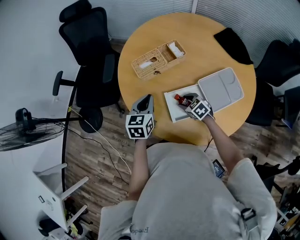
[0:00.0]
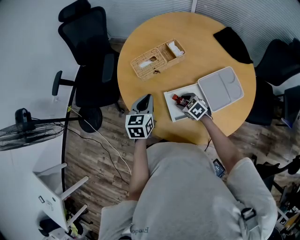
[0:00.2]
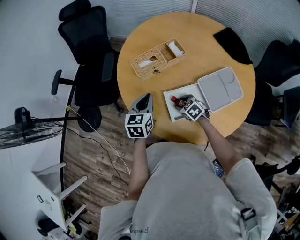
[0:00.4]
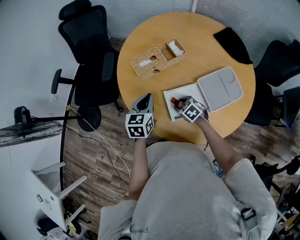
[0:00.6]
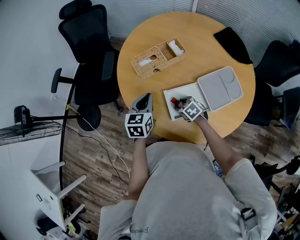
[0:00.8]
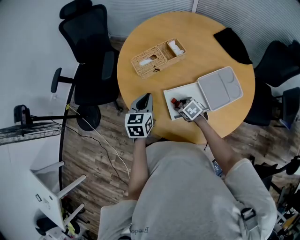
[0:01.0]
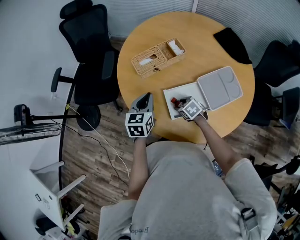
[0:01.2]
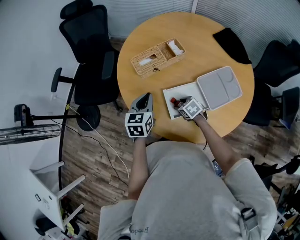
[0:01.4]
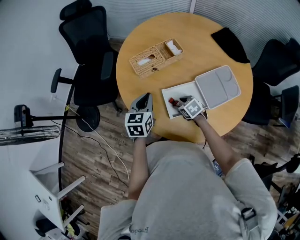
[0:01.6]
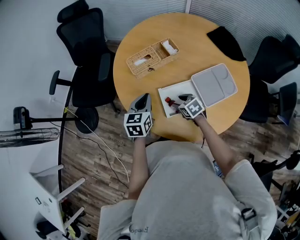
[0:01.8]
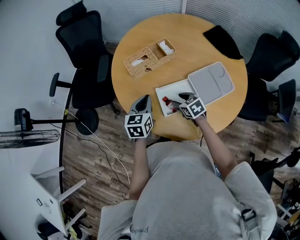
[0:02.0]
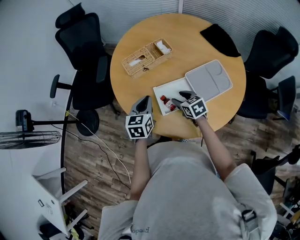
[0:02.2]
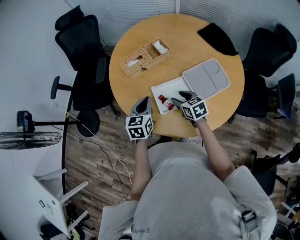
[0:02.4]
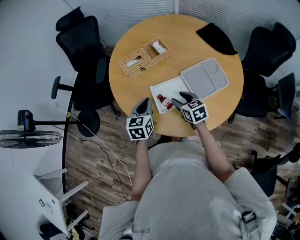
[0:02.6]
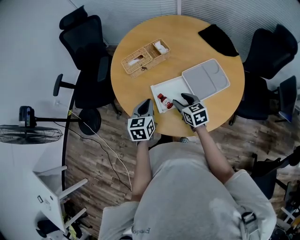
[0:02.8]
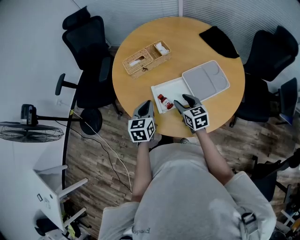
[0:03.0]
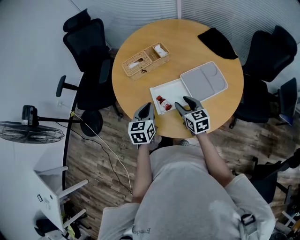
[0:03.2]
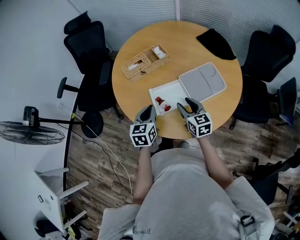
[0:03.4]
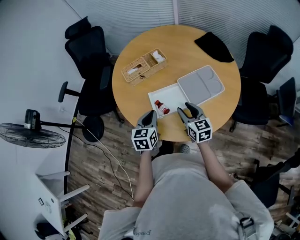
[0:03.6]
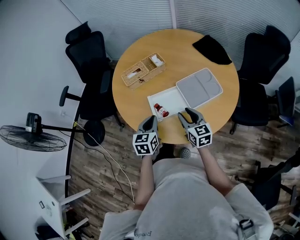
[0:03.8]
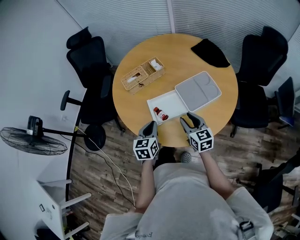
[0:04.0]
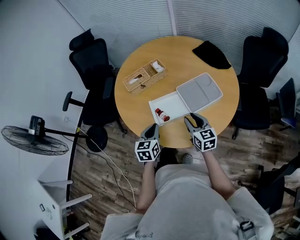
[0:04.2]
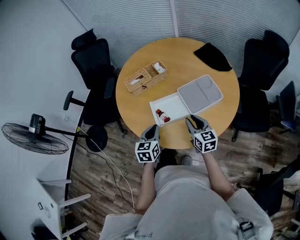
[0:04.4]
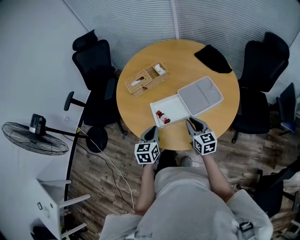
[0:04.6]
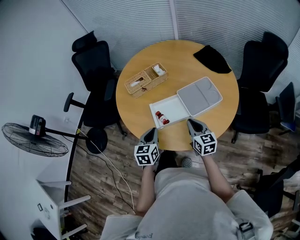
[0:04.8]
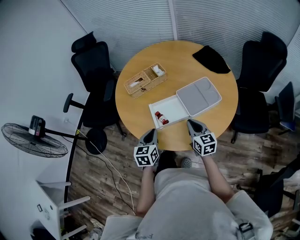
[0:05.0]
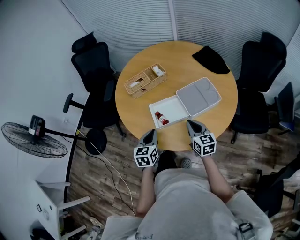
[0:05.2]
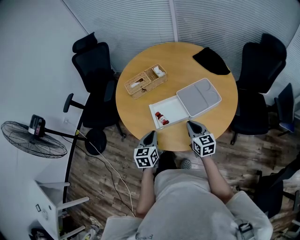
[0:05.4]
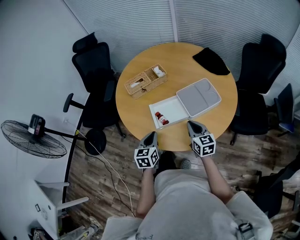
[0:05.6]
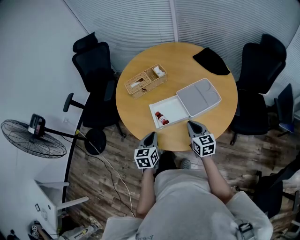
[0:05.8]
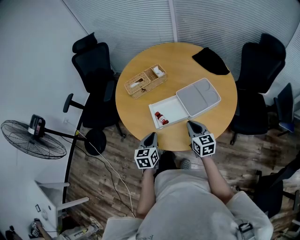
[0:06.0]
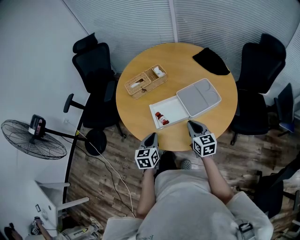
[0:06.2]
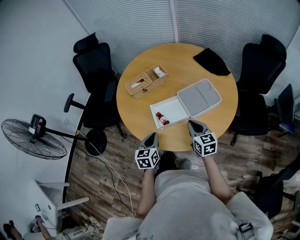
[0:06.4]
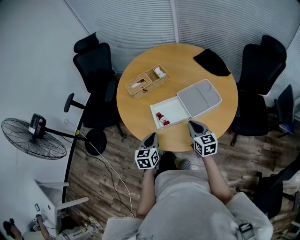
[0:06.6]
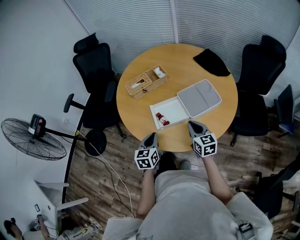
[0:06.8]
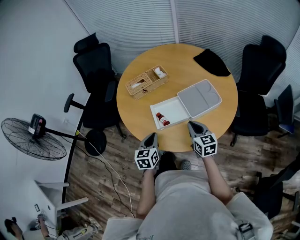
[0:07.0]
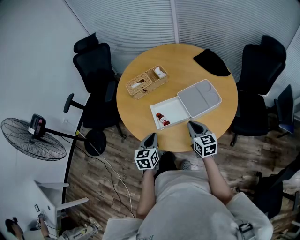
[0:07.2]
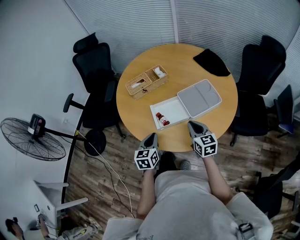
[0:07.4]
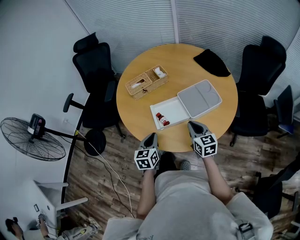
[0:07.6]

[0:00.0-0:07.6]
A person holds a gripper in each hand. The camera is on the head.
0:00.0 to 0:01.6: The grippers stay close to where they were, moving slightly.
0:01.6 to 0:03.0: The left gripper moves backward, approximately 10 cm; the right gripper travels upward and to the right by about 15 cm, and changes its angle by some 30 degrees.
0:03.0 to 0:04.6: The left gripper shifts roughly 5 cm backward, while the right gripper travels to the right and backward by about 10 cm, and closes.
0:04.6 to 0:06.0: There are only small adjustments of the grippers.
0:06.0 to 0:07.6: Both grippers stay put.

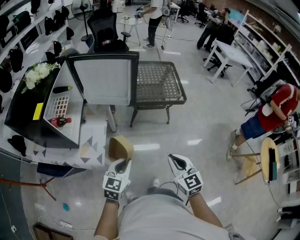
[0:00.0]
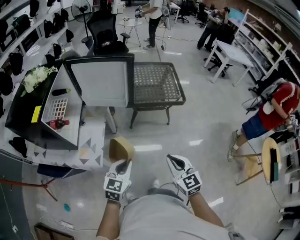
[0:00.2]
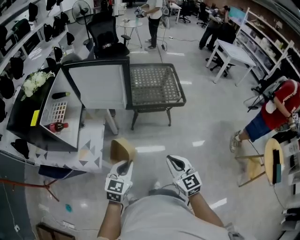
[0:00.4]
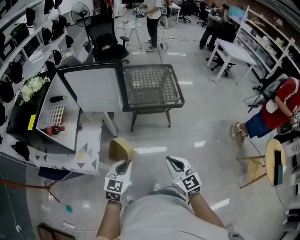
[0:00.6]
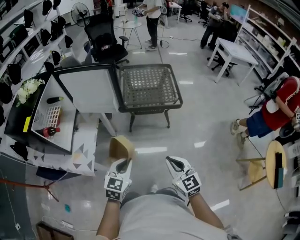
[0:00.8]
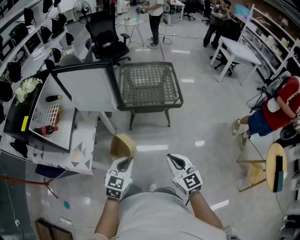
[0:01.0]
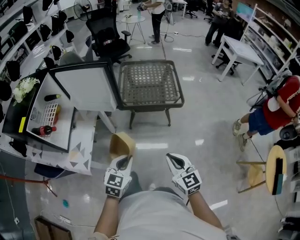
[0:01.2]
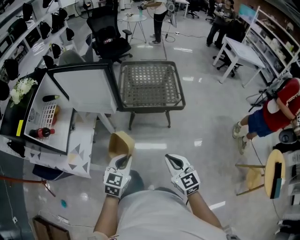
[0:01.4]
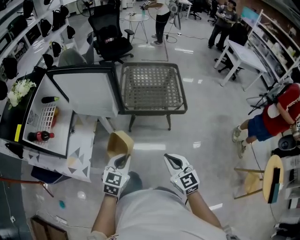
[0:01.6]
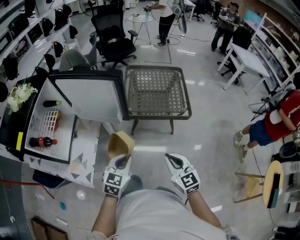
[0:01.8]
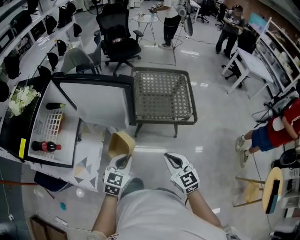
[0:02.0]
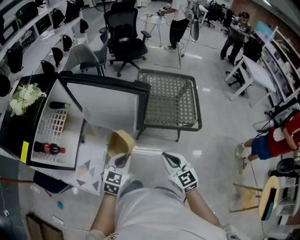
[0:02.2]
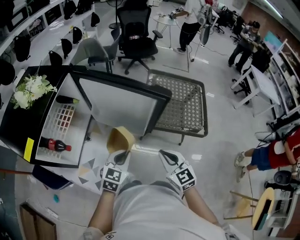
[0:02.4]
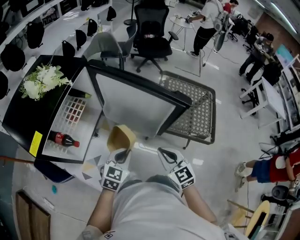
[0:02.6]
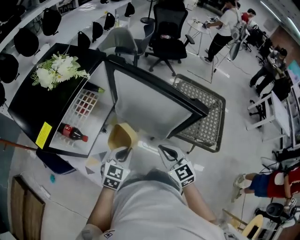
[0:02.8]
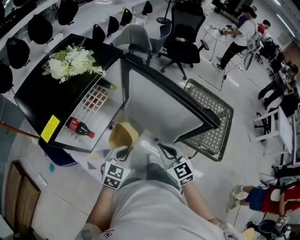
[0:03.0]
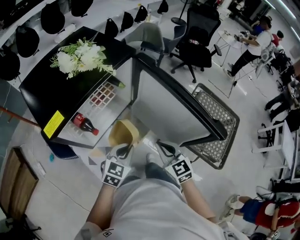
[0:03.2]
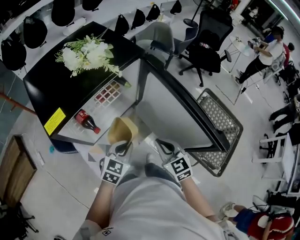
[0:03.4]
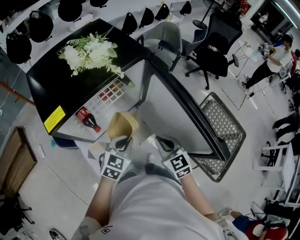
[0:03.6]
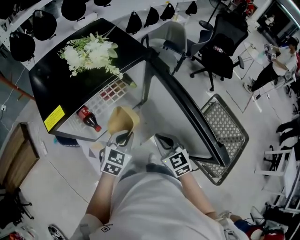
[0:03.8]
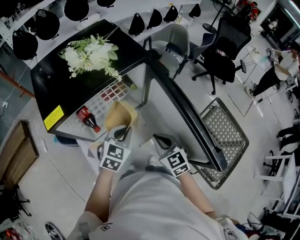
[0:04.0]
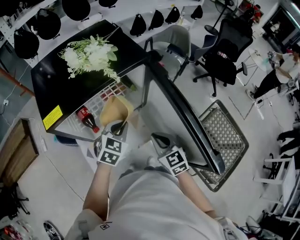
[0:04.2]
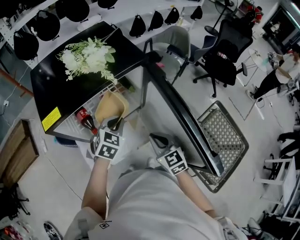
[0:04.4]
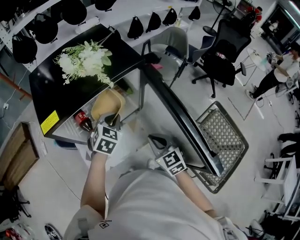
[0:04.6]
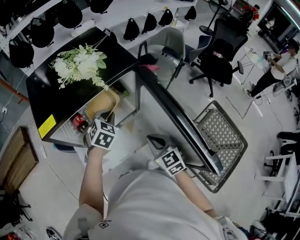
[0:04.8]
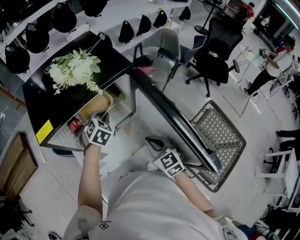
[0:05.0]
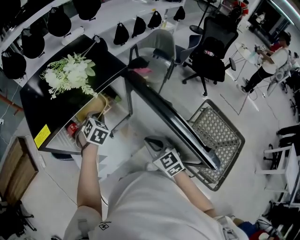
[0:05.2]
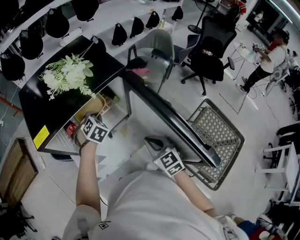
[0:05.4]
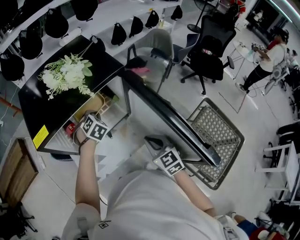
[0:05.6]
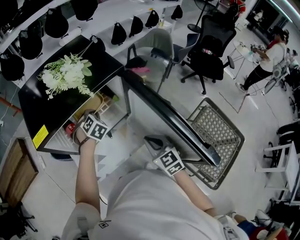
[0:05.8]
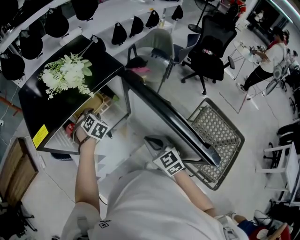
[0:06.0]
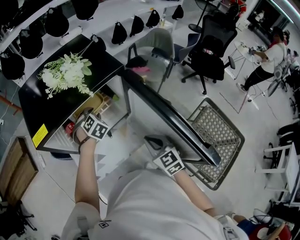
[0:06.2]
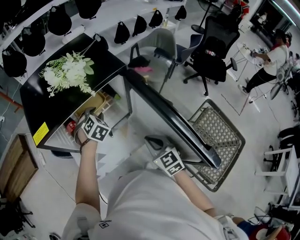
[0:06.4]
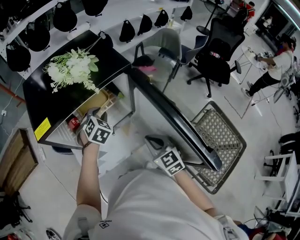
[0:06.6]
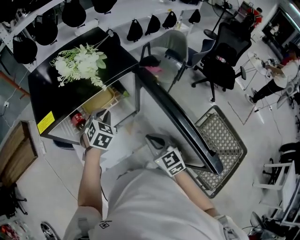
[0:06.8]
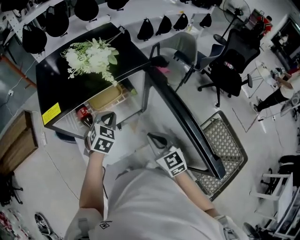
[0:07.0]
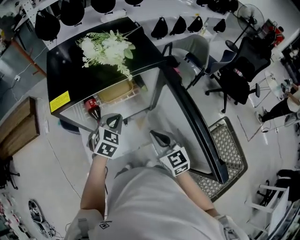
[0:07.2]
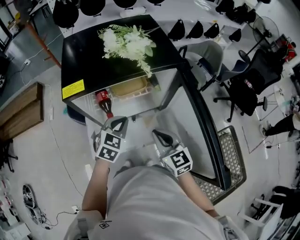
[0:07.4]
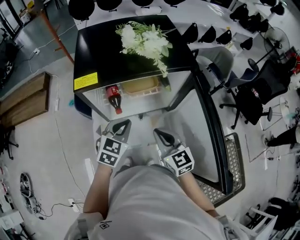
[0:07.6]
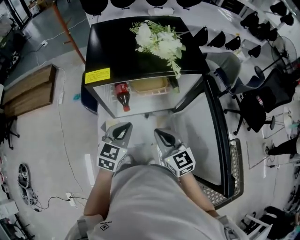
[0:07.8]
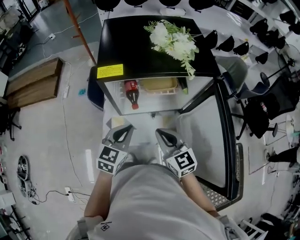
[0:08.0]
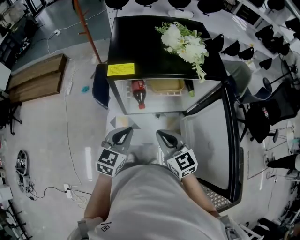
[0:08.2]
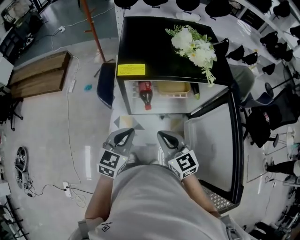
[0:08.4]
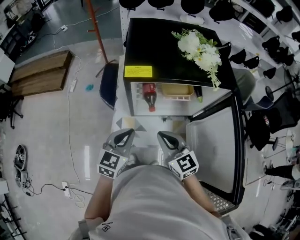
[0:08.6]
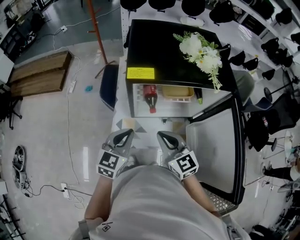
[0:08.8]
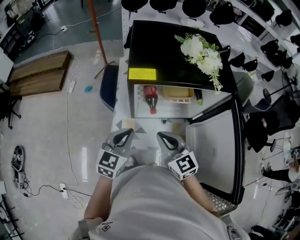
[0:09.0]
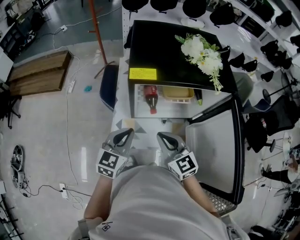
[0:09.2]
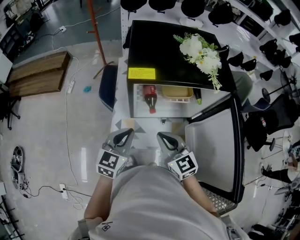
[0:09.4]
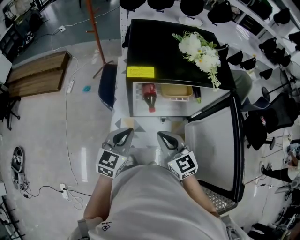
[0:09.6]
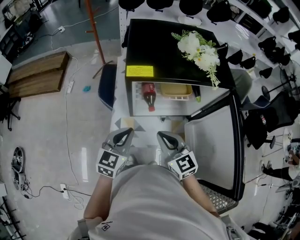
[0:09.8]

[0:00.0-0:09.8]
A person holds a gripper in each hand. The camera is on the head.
0:00.0 to 0:01.4: The grippers both shift to the right and forward by some 15 cm.
0:01.4 to 0:02.8: The right gripper heads forward and to the left, covering about 40 cm, and turns by some 30 degrees. The left gripper moves to the left and forward, approximately 30 cm.
0:02.8 to 0:04.2: The left gripper shifts by roughly 15 cm, and rotates roughly 30 degrees, while the right gripper shifts by about 15 cm, and rotates approximately 30 degrees.
0:04.2 to 0:05.6: The left gripper heads forward, covering approximately 15 cm, and rotates some 30 degrees.
0:05.6 to 0:07.0: The left gripper travels backward and upward by roughly 10 cm, changes its angle by roughly 20 degrees, and opens and closes again.
0:07.0 to 0:08.4: The left gripper moves to the left and backward, about 20 cm, and turns by about 40 degrees, while the right gripper is displaced to the left by some 15 cm, and changes its angle by roughly 30 degrees.
0:08.4 to 0:09.8: The grippers move only a little.

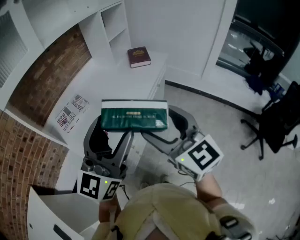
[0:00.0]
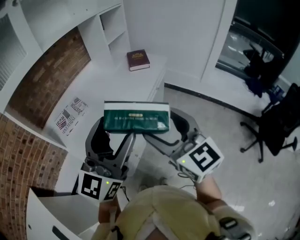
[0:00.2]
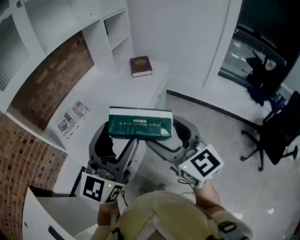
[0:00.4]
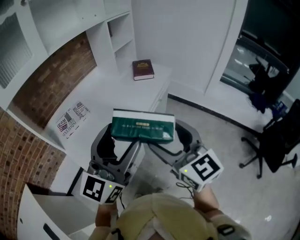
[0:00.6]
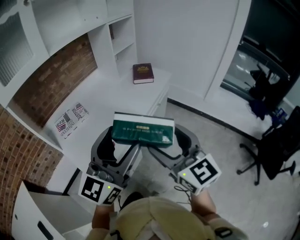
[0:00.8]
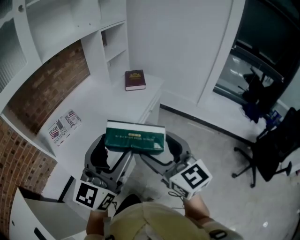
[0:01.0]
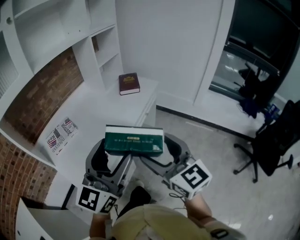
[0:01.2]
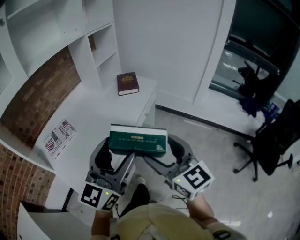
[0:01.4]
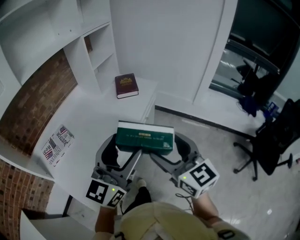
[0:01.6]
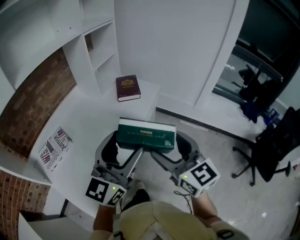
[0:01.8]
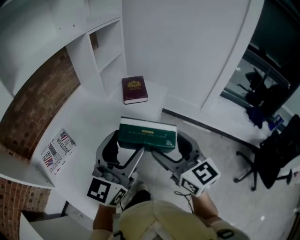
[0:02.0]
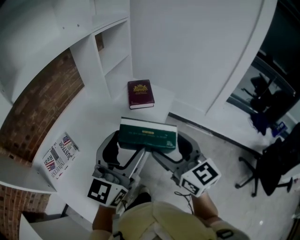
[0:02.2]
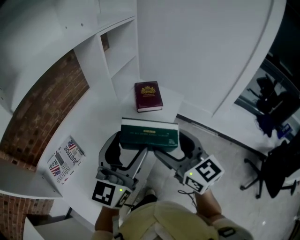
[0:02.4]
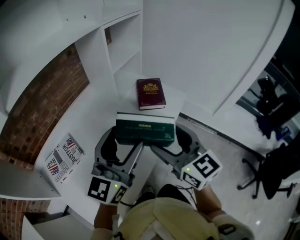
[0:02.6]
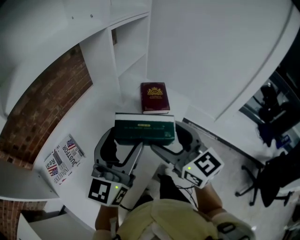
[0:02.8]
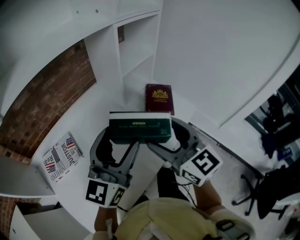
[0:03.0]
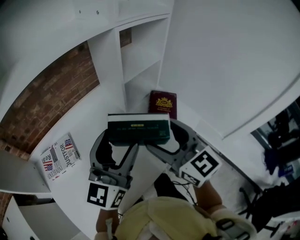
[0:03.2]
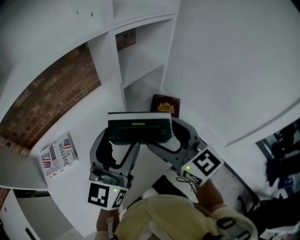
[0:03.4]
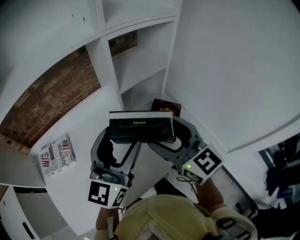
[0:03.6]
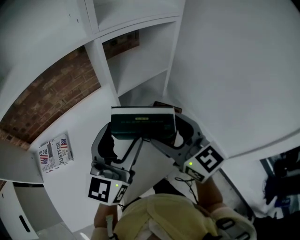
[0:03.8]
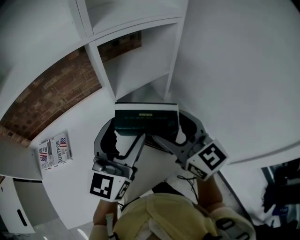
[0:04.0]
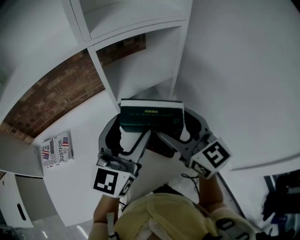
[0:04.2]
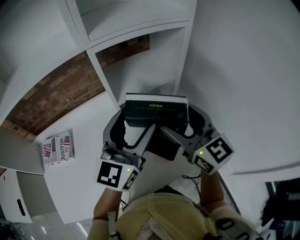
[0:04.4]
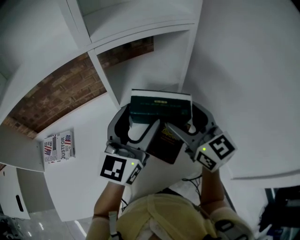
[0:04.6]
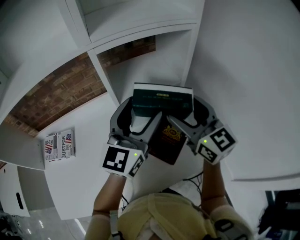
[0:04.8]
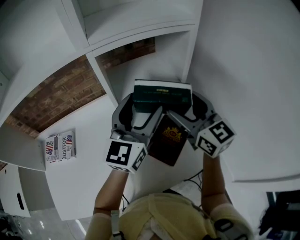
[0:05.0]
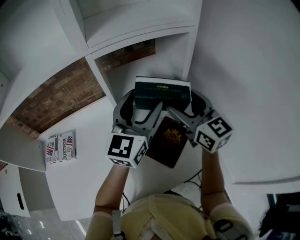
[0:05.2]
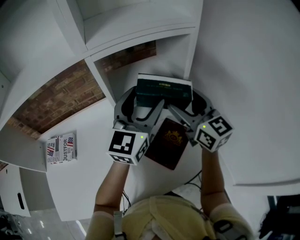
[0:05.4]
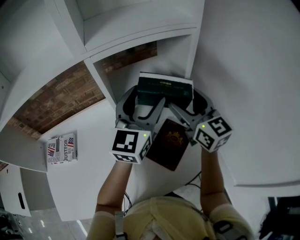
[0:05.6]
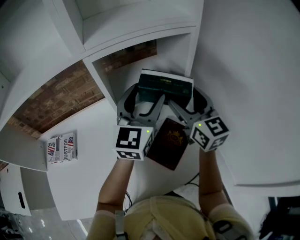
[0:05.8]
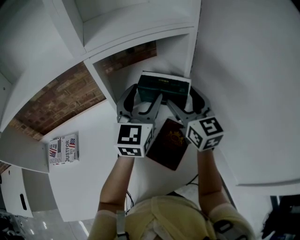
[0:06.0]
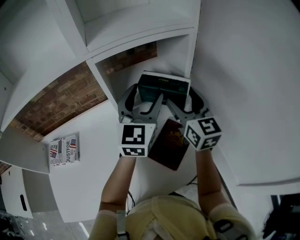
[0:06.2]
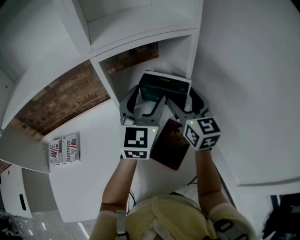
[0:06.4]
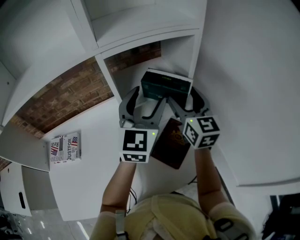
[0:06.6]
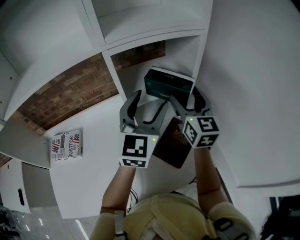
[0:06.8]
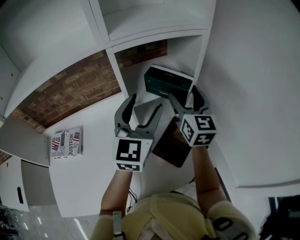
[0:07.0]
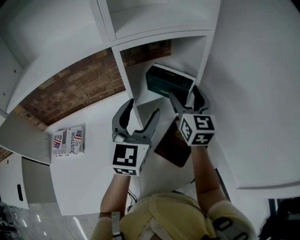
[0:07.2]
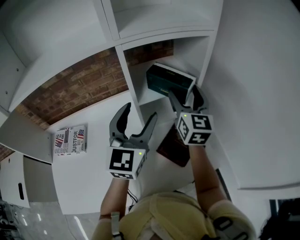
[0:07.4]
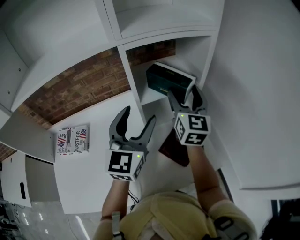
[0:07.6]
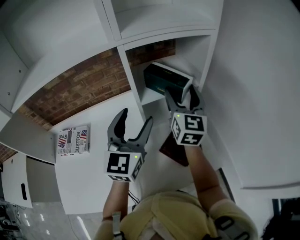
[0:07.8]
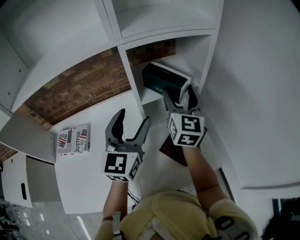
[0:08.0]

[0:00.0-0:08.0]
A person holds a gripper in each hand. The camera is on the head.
0:00.0 to 0:01.6: The right gripper travels to the right and forward by approximately 15 cm. The left gripper shifts some 15 cm forward and to the right.
0:01.6 to 0:03.2: The right gripper changes place by about 35 cm, and rotates some 30 degrees; the left gripper ends up about 35 cm from where it was, and swivels approximately 30 degrees.
0:03.2 to 0:04.8: Both grippers move forward and to the right, about 25 cm.
0:04.8 to 0:06.4: The two grippers go about 5 cm forward.
0:06.4 to 0:08.0: The right gripper moves to the left, some 5 cm. Meanwhile the left gripper is displaced to the left and backward by about 15 cm.
